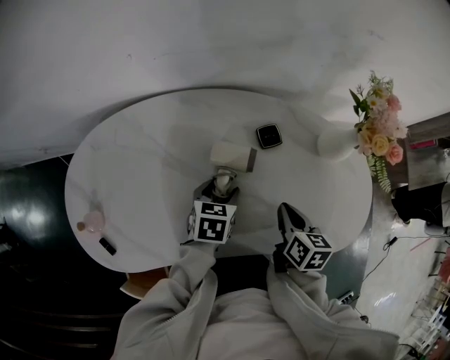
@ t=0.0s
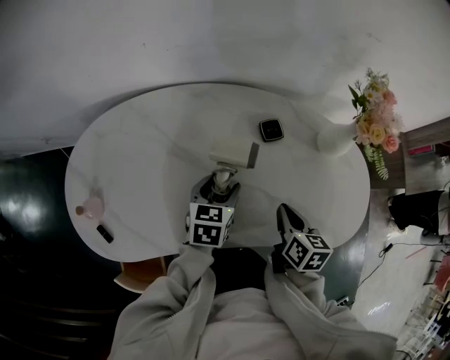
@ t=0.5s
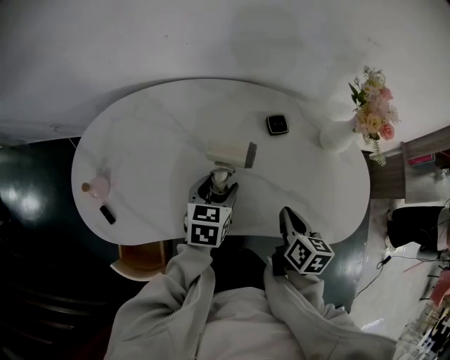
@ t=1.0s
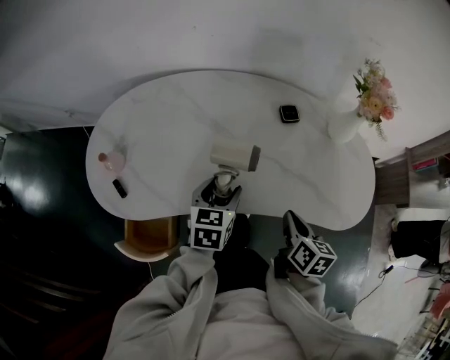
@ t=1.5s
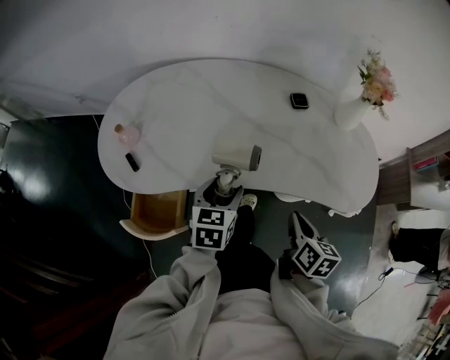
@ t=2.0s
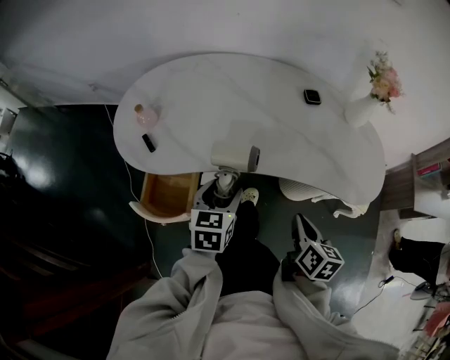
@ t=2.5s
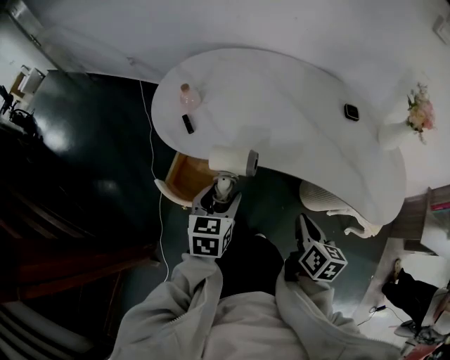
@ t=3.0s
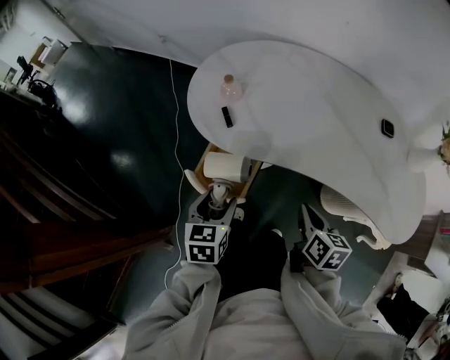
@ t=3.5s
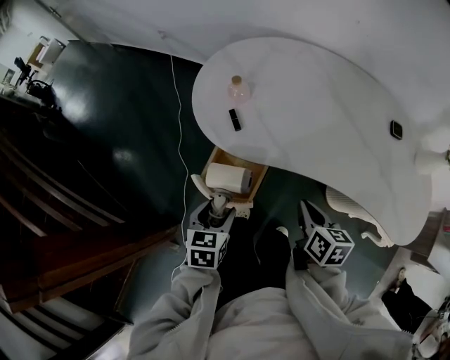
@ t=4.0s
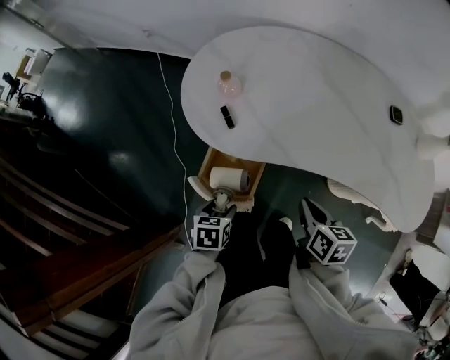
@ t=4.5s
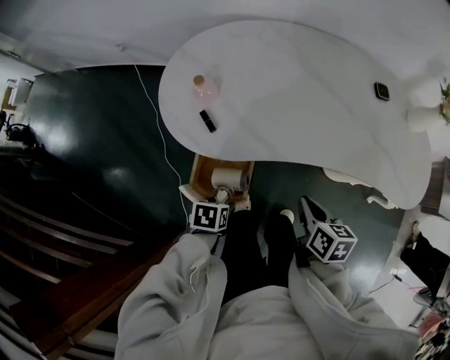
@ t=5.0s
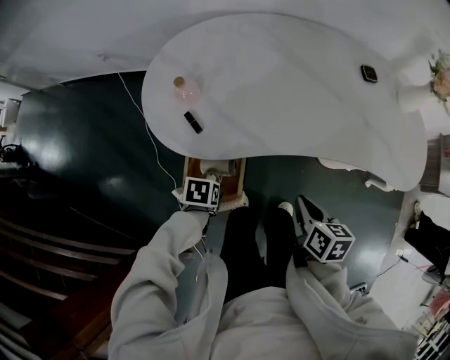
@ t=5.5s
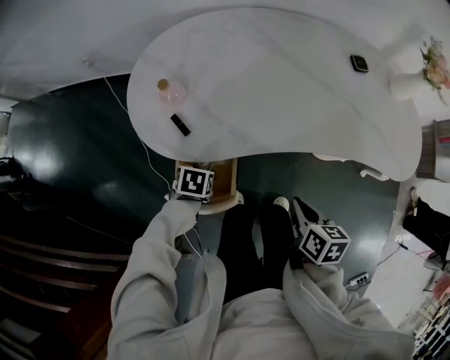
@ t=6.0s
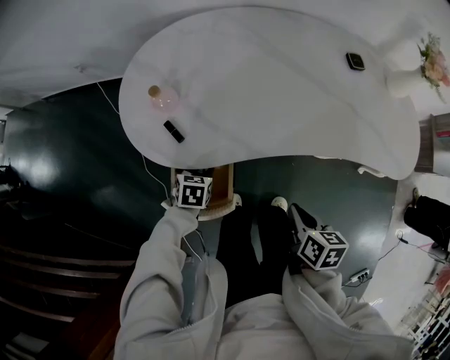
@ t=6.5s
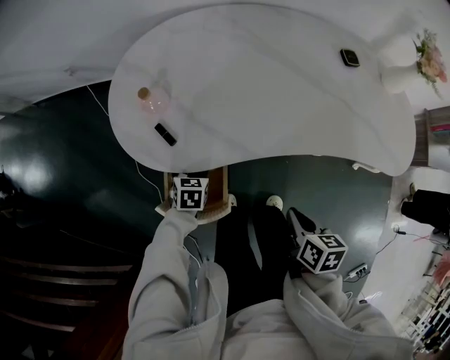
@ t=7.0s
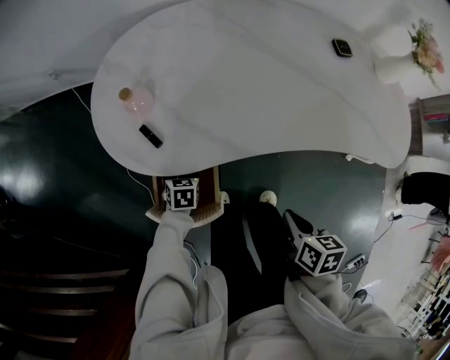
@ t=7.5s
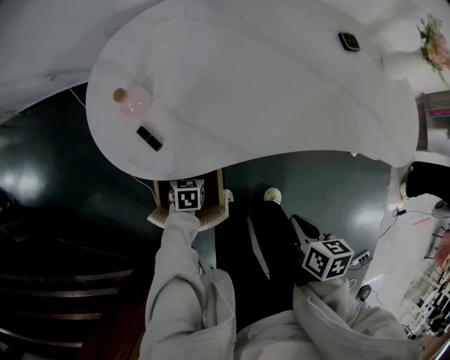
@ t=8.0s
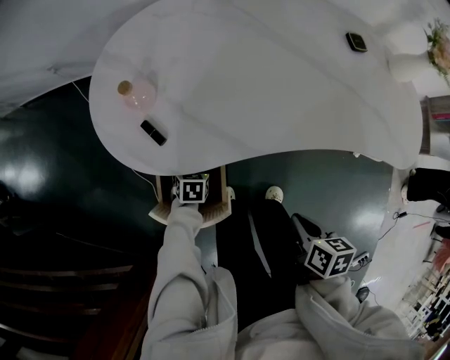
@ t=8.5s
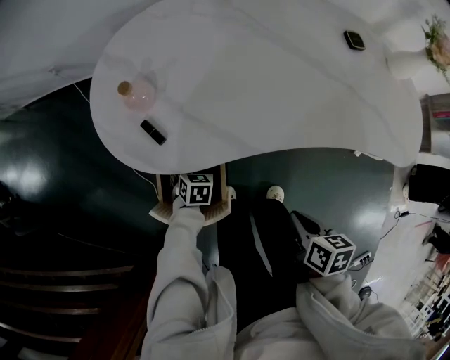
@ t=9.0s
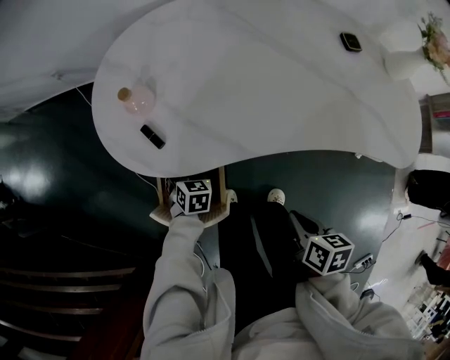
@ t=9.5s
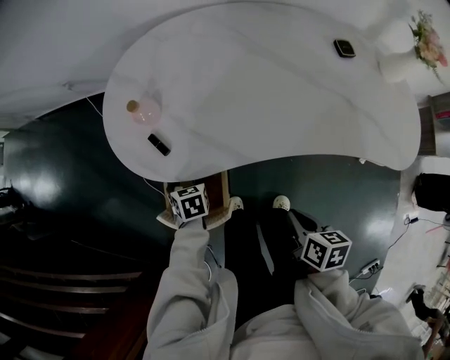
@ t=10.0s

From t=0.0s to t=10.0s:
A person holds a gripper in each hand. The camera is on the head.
From t=0.0s to t=2.0s: The grippers both shift backward by roughly 20 cm. The left gripper rotates about 20 degrees.
From t=2.0s to t=4.0s: The left gripper moves roughly 35 cm, and swivels roughly 30 degrees. Meanwhile the right gripper ends up about 25 cm from where it was, and rotates roughly 30 degrees.
From t=4.0s to t=6.0s: The right gripper changes place by approximately 5 cm, and rotates about 20 degrees; the left gripper shifts about 15 cm downward, and swivels approximately 40 degrees.
From t=6.0s to t=8.0s: The left gripper moves downward, roughly 10 cm, while the right gripper ends up approximately 5 cm from where it was.
From t=8.0s to t=10.0s: The left gripper shifts some 10 cm upward.

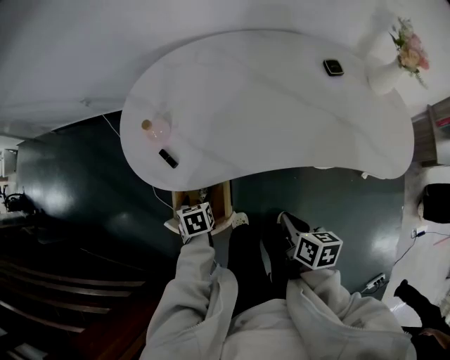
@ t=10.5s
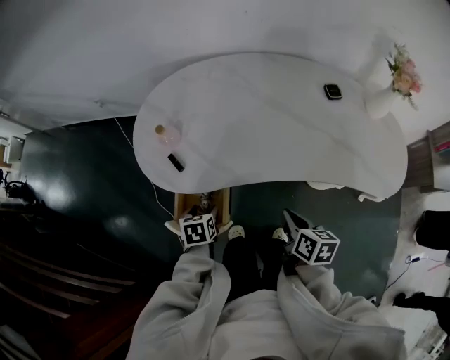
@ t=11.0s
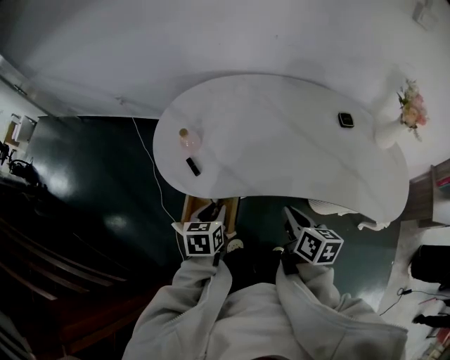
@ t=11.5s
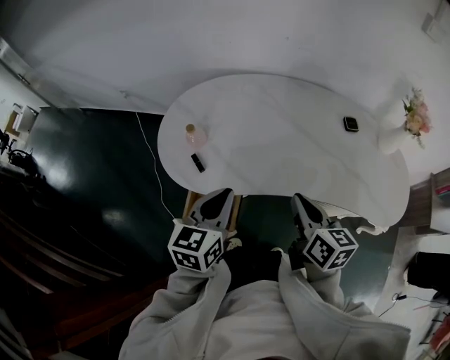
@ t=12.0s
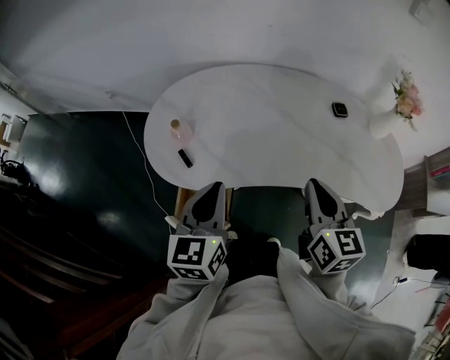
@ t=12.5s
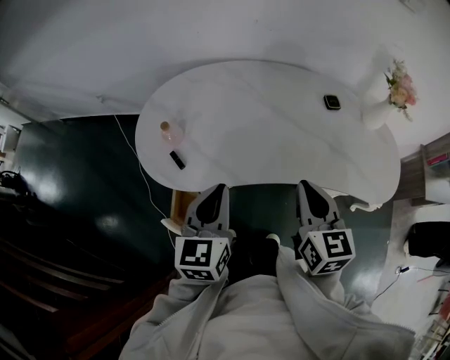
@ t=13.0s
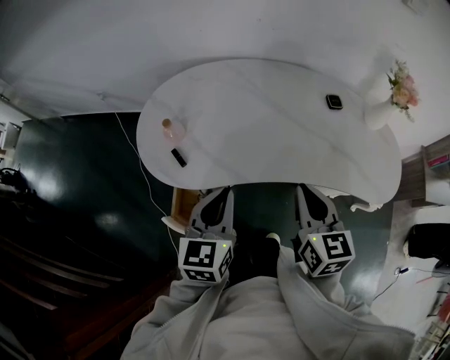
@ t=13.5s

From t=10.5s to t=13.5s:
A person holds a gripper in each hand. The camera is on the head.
From t=10.5s to t=12.0s: The right gripper shifts approximately 20 cm upward and forward, and rotates approximately 30 degrees. The left gripper shifts approximately 30 cm upward, angles its fingers upward, by roughly 40 degrees, and closes up.
From t=12.0s to t=13.5s: The right gripper changes its angle by approximately 20 degrees.

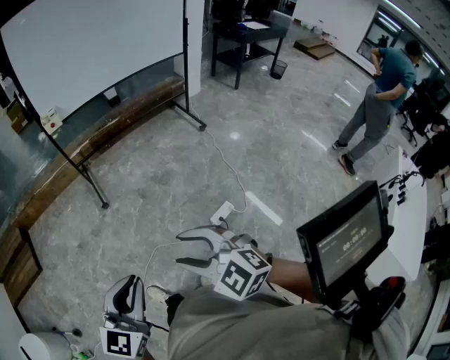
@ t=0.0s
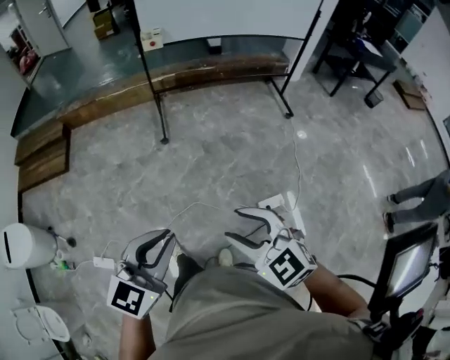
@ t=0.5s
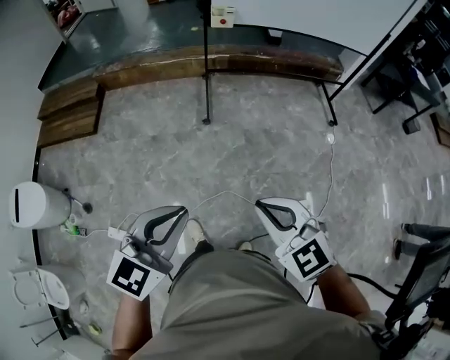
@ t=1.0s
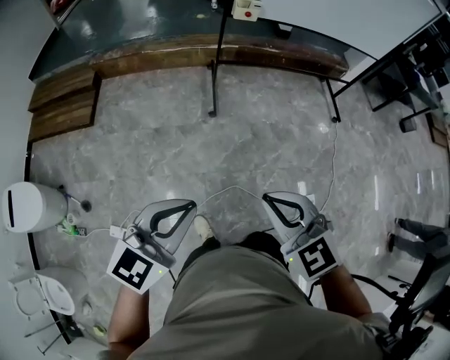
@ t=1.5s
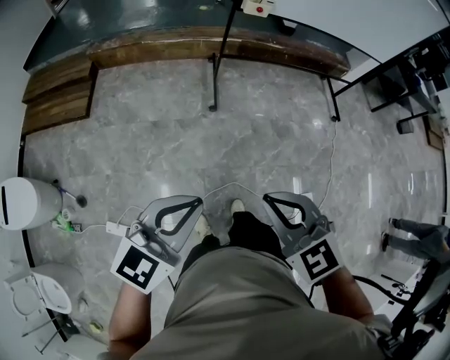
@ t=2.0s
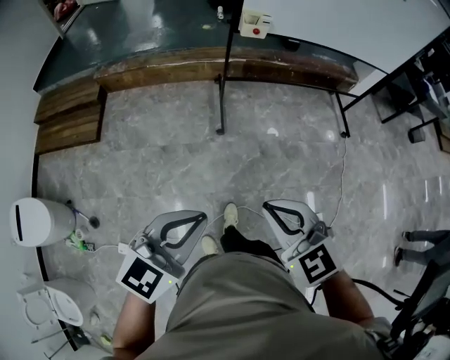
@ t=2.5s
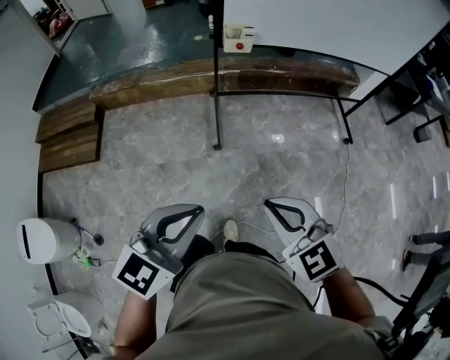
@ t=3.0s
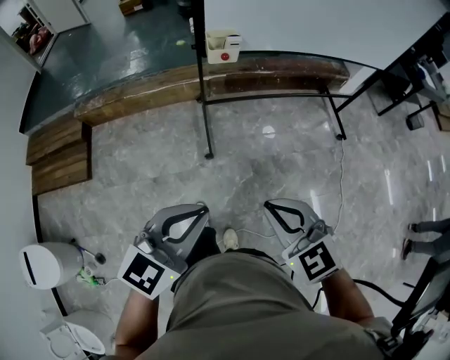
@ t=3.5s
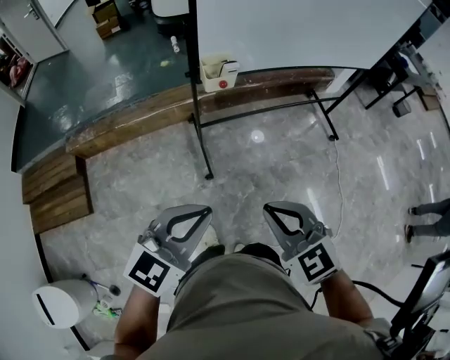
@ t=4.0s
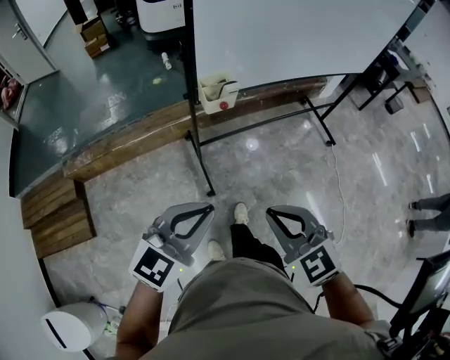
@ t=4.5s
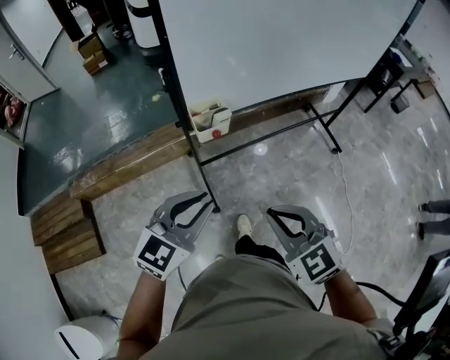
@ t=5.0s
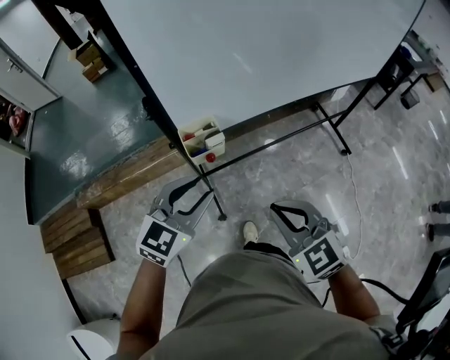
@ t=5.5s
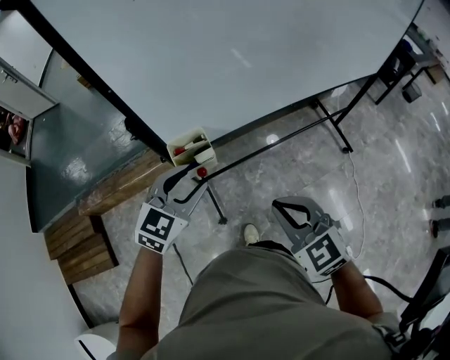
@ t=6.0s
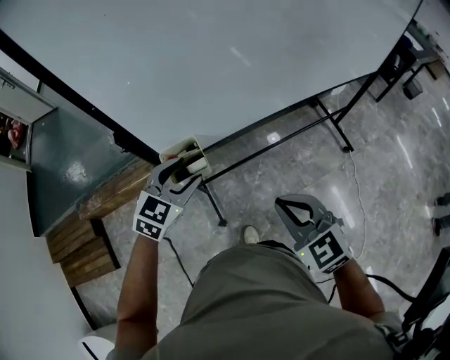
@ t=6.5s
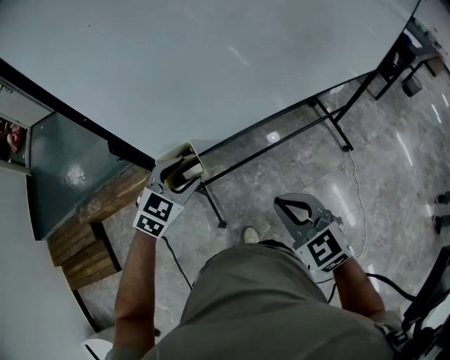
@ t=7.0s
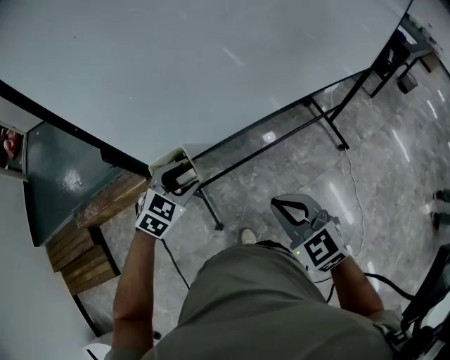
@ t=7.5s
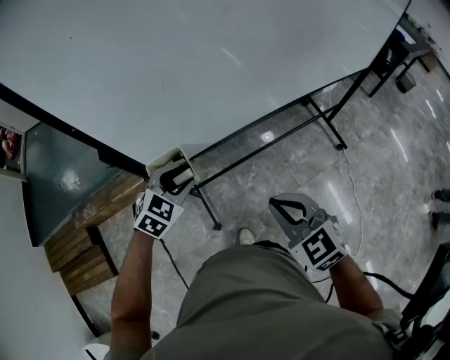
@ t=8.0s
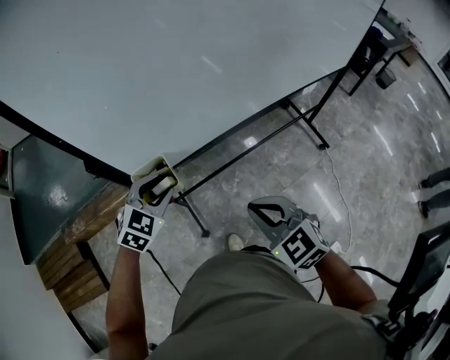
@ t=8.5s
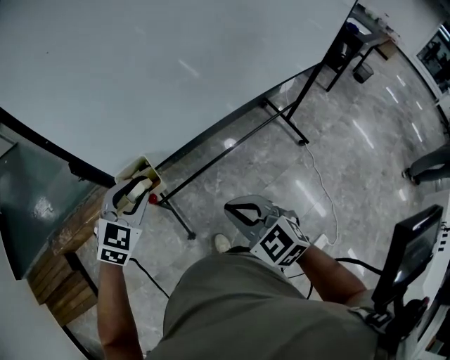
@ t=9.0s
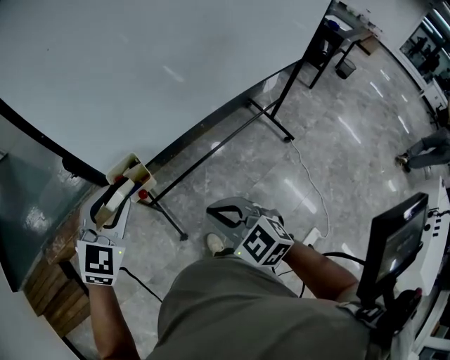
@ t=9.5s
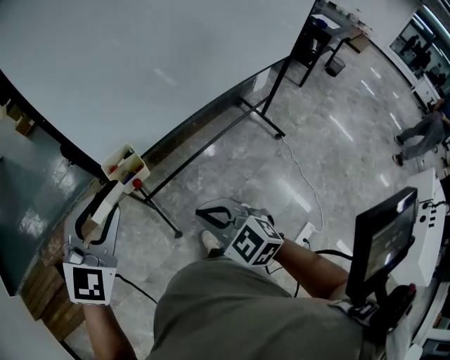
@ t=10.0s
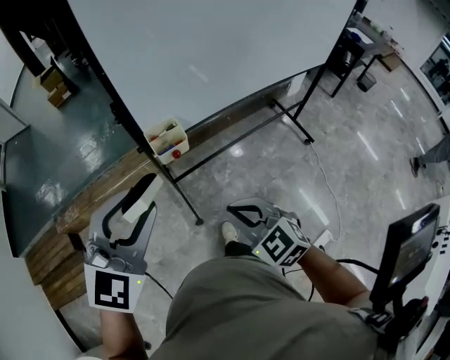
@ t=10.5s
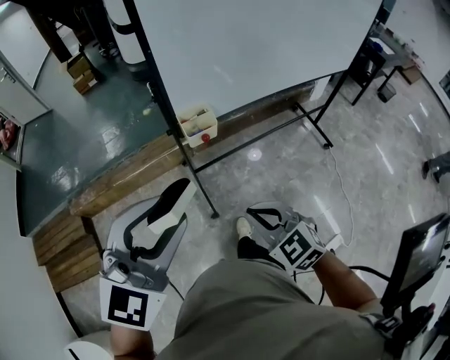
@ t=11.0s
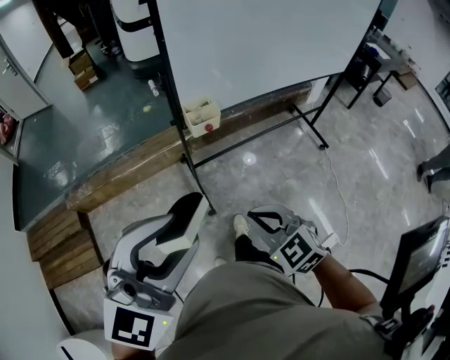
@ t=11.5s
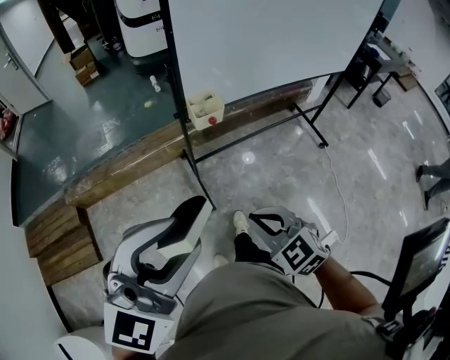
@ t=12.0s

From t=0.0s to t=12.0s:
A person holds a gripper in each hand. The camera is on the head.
From t=0.0s to t=2.0s: The two grippers go some 40 cm to the left and forward. The right gripper closes.
From t=2.0s to t=4.0s: The two grippers go roughly 40 cm forward.
From t=4.0s to t=6.0s: Both grippers travel together forward, about 35 cm. The left gripper opens its fingers.
From t=6.0s to t=8.0s: The left gripper heads downward and forward, covering some 10 cm, and changes its angle by roughly 20 degrees. Meanwhile the right gripper shifts roughly 5 cm to the right and forward.
From t=8.0s to t=10.0s: The right gripper heads backward and to the left, covering some 15 cm, while the left gripper shifts approximately 25 cm upward and backward, and turns by some 30 degrees.
From t=10.0s to t=12.0s: The left gripper travels backward by approximately 30 cm. The right gripper travels backward and to the left by roughly 20 cm.

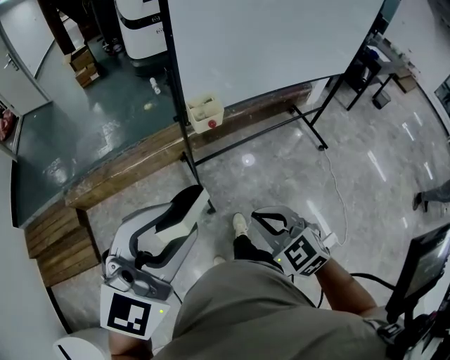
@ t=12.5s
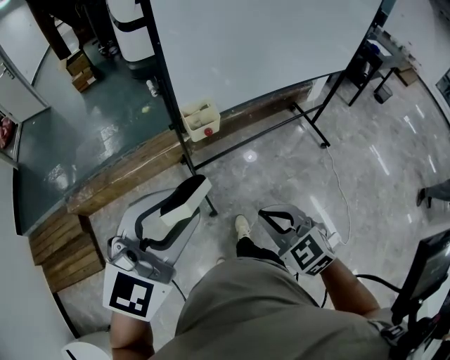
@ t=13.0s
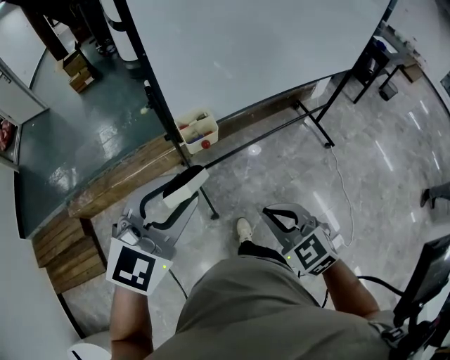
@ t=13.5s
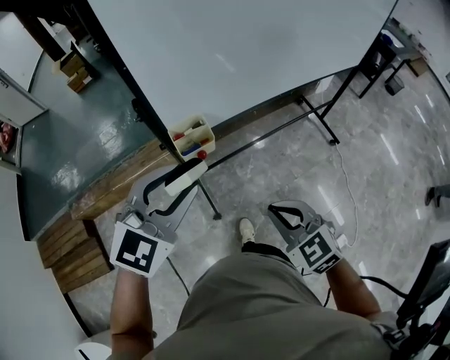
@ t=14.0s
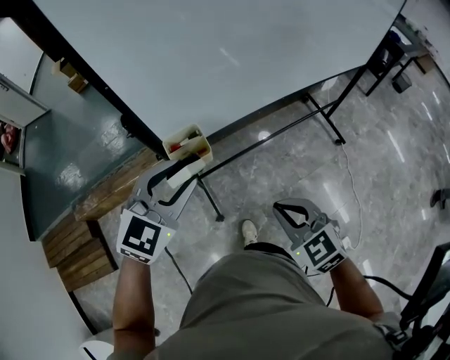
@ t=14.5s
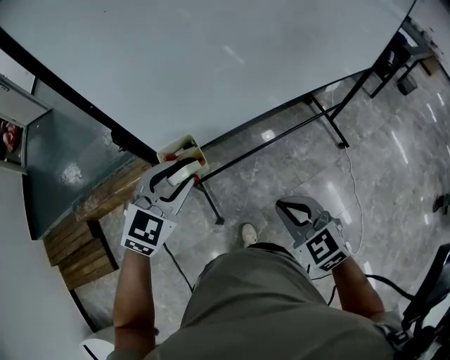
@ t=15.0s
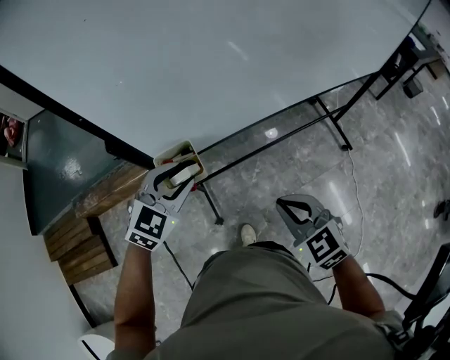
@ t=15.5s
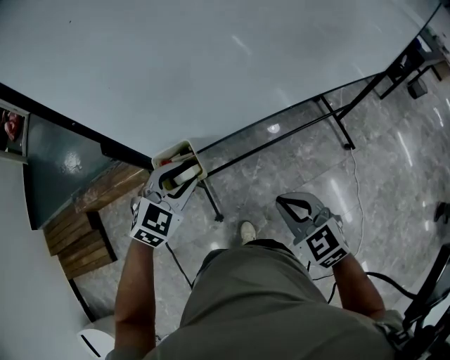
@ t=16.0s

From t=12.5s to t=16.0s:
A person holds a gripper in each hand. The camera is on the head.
From t=12.5s to t=14.5s: The left gripper goes approximately 30 cm forward. Meanwhile the right gripper goes roughly 25 cm forward and to the right.
From t=14.5s to t=16.0s: The right gripper travels forward by approximately 10 cm. Meanwhile the left gripper moves downward and forward, about 15 cm.
